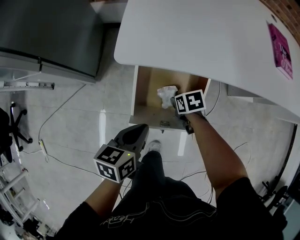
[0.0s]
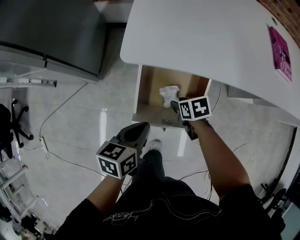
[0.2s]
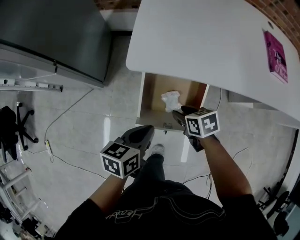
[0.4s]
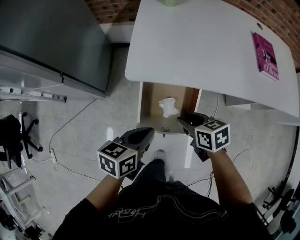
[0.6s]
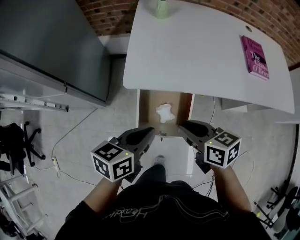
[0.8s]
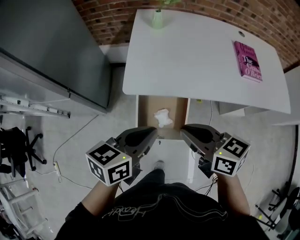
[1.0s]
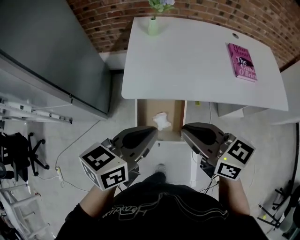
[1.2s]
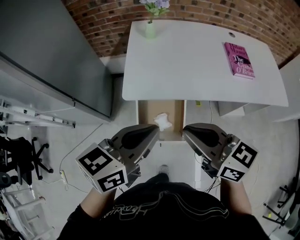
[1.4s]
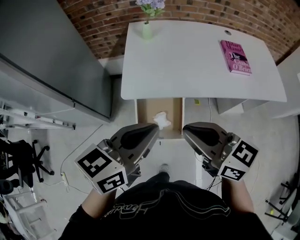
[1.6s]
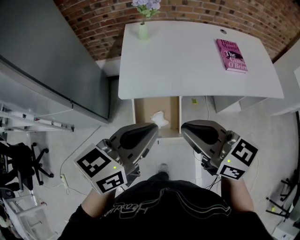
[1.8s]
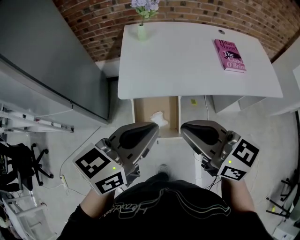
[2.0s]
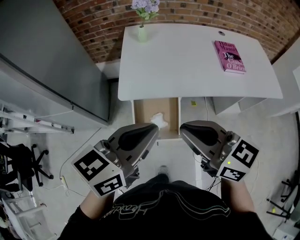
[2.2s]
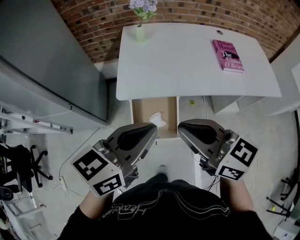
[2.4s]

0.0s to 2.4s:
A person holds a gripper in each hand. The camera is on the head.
0.0s to 1.2s: The grippers both shift upward by approximately 40 cm. The right gripper tilts its fingers about 50 degrees upward, while the left gripper swivels roughly 30 degrees.
1.2s to 2.4s: The grippers both shift upward by about 5 cm.

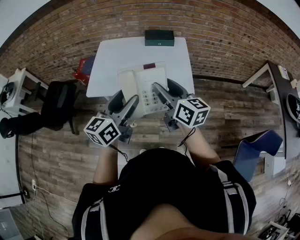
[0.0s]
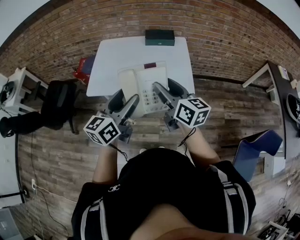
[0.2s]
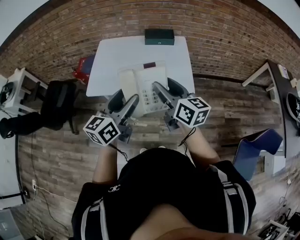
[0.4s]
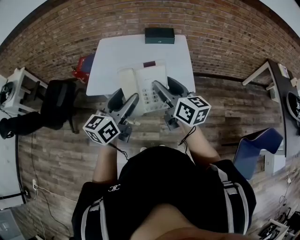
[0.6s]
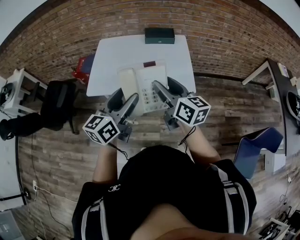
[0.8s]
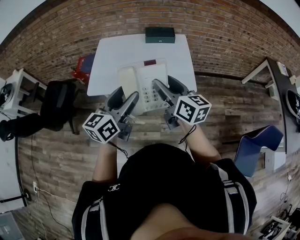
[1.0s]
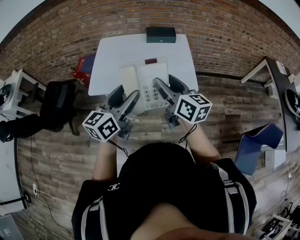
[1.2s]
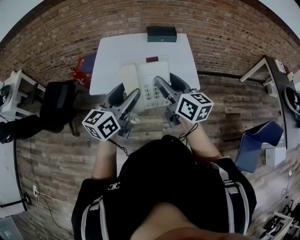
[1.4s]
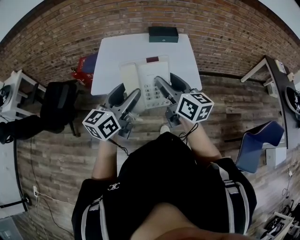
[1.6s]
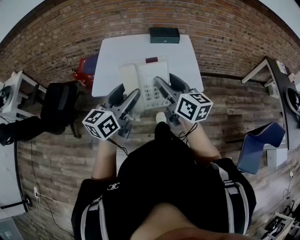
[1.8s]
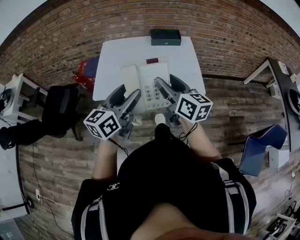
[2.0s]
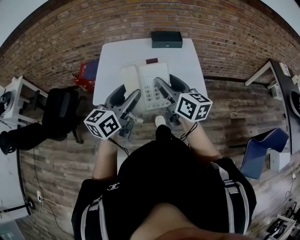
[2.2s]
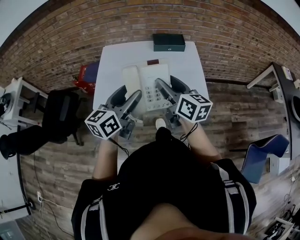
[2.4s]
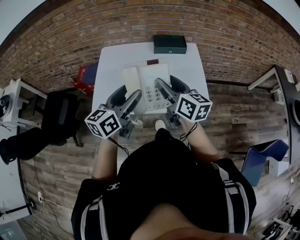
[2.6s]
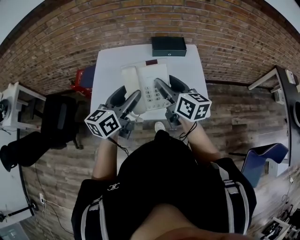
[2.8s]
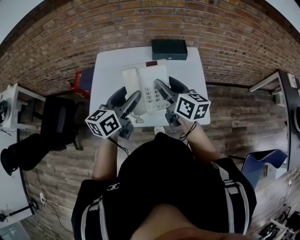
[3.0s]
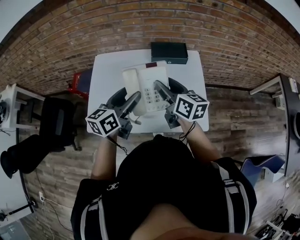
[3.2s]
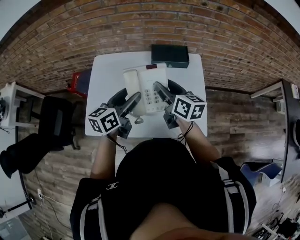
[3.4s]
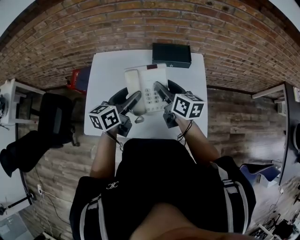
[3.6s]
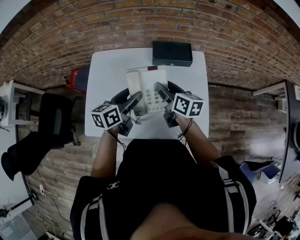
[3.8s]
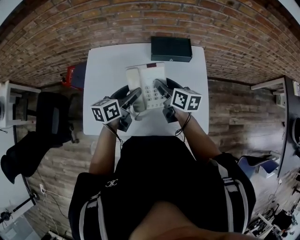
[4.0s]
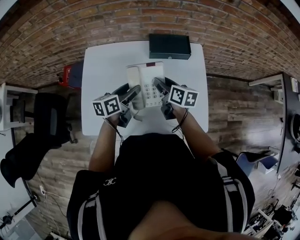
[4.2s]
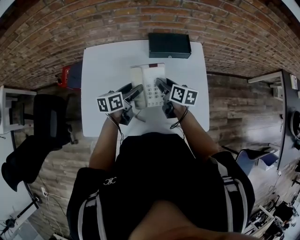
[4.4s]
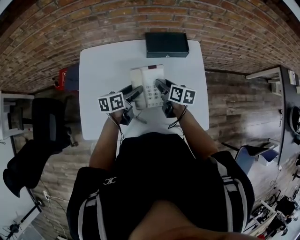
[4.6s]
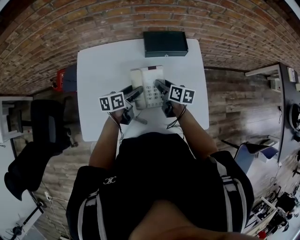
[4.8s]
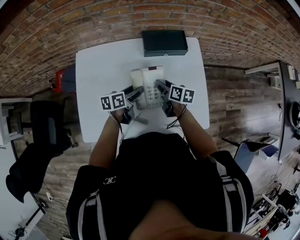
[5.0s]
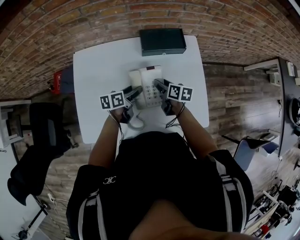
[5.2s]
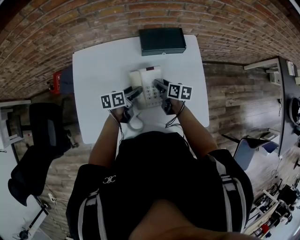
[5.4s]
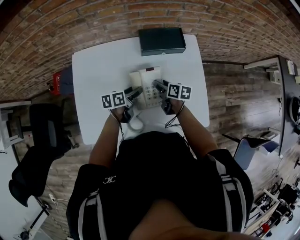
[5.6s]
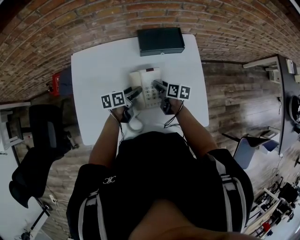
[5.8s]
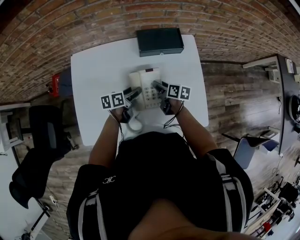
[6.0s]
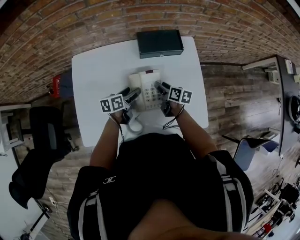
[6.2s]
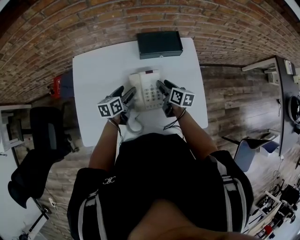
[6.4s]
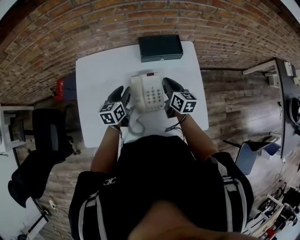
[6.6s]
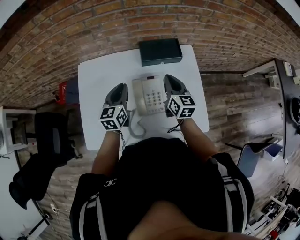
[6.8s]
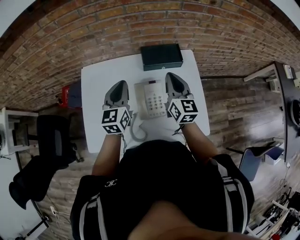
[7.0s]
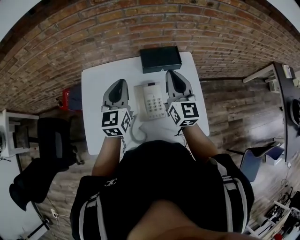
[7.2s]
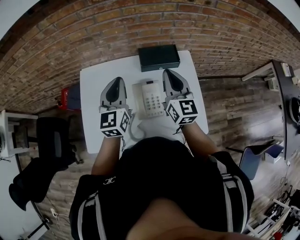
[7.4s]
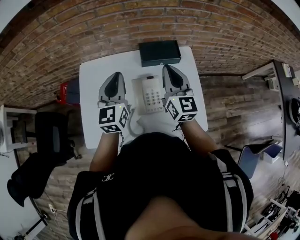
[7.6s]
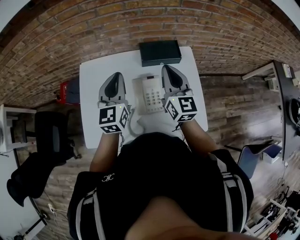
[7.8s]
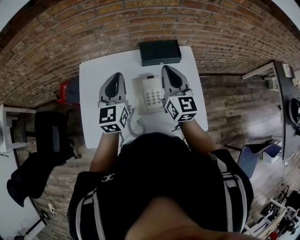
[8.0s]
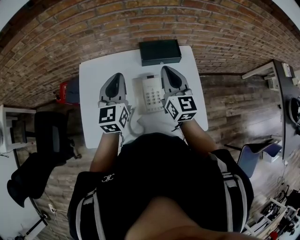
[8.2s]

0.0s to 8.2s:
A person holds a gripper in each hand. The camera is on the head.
0.0s to 1.6s: The grippers both shift to the left by about 5 cm.
1.6s to 3.2s: The grippers both shift forward by approximately 35 cm.
3.2s to 5.0s: Both grippers travel together downward and forward, roughly 25 cm. The right gripper rotates some 30 degrees. The left gripper swivels roughly 30 degrees.
5.0s to 6.6s: The left gripper ends up about 5 cm from where it was, swivels some 30 degrees, and closes up. Meanwhile the right gripper is displaced upward by about 5 cm, rotates about 20 degrees, and closes its fingers.
6.6s to 8.2s: Both grippers move upward, roughly 20 cm. The right gripper rotates approximately 30 degrees. The left gripper swivels some 30 degrees, and closes its fingers.

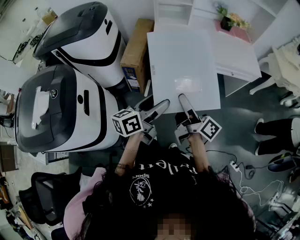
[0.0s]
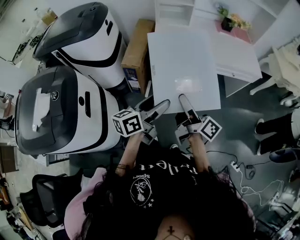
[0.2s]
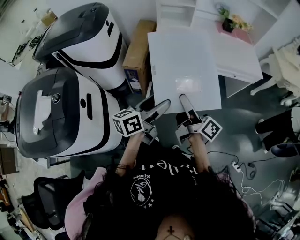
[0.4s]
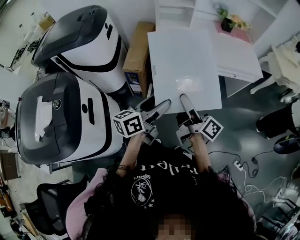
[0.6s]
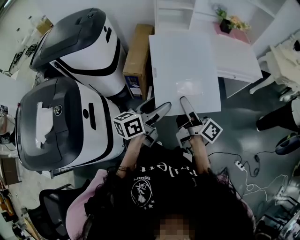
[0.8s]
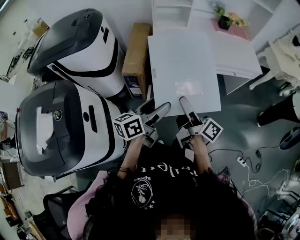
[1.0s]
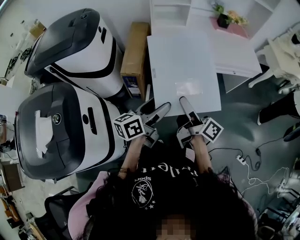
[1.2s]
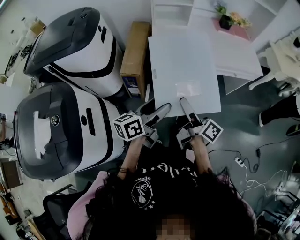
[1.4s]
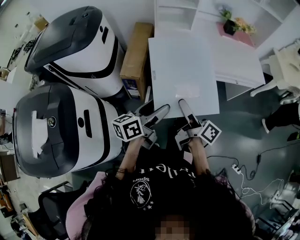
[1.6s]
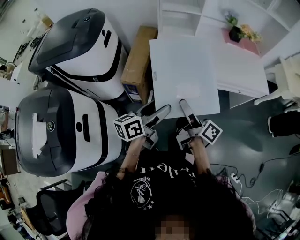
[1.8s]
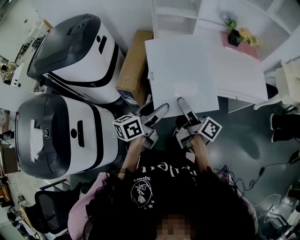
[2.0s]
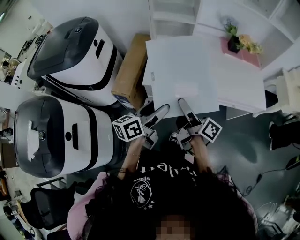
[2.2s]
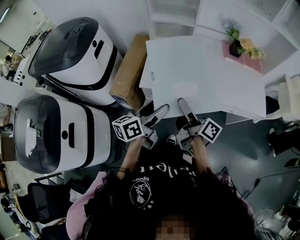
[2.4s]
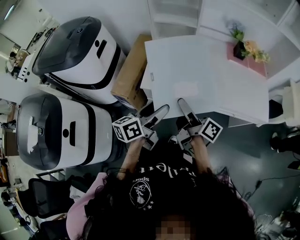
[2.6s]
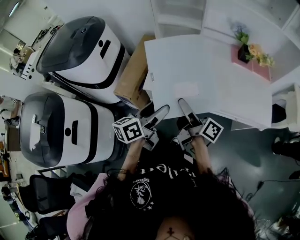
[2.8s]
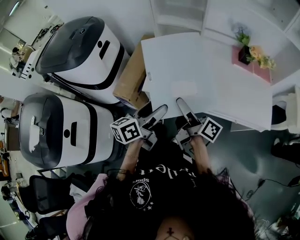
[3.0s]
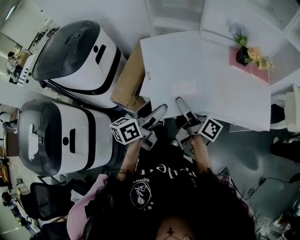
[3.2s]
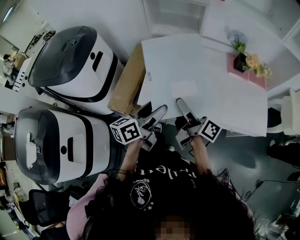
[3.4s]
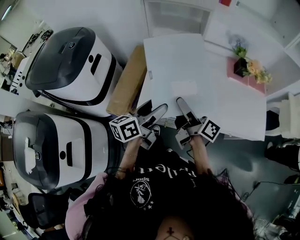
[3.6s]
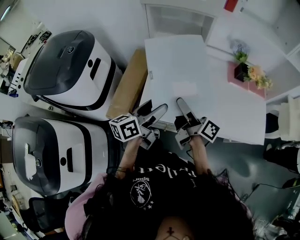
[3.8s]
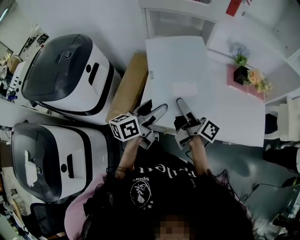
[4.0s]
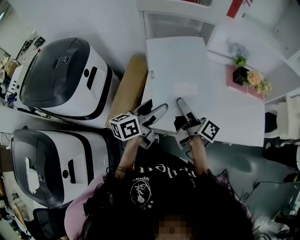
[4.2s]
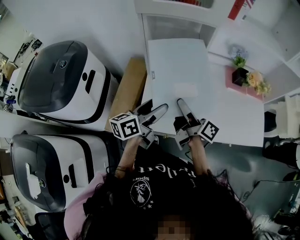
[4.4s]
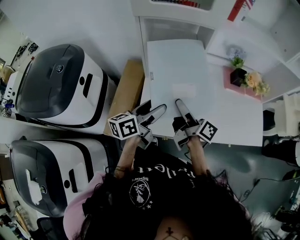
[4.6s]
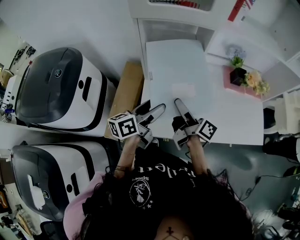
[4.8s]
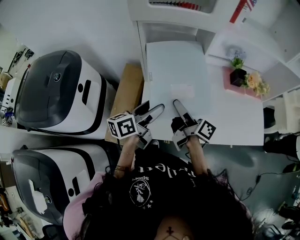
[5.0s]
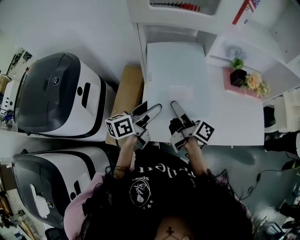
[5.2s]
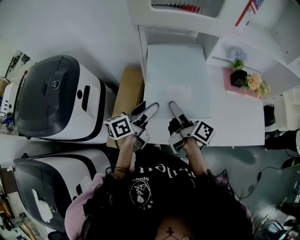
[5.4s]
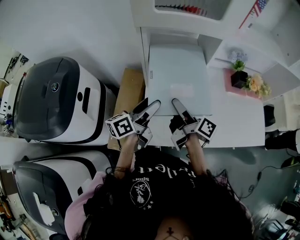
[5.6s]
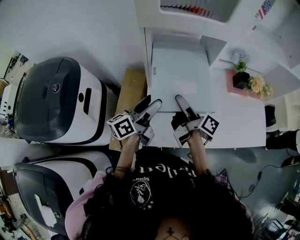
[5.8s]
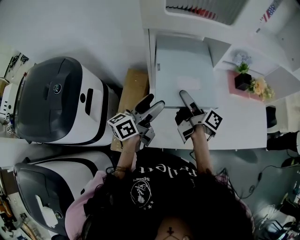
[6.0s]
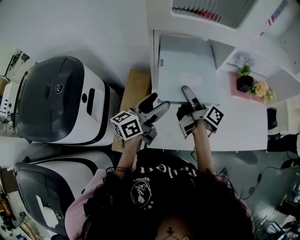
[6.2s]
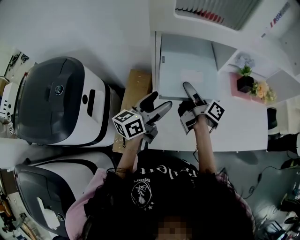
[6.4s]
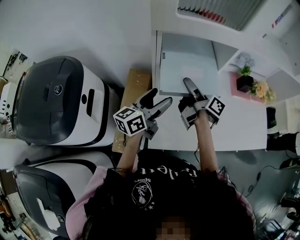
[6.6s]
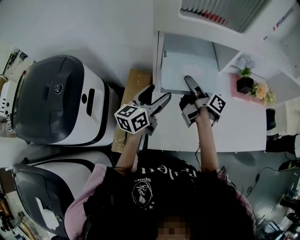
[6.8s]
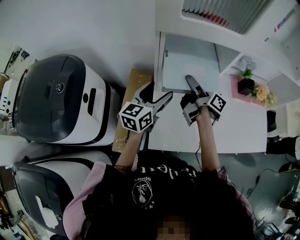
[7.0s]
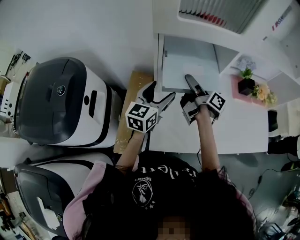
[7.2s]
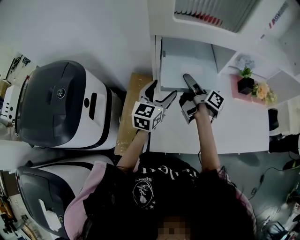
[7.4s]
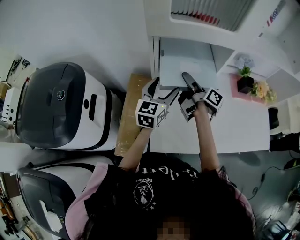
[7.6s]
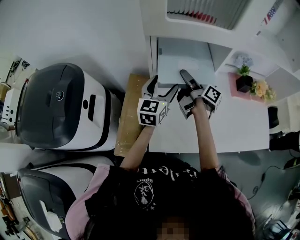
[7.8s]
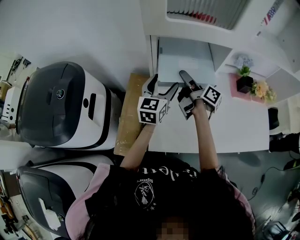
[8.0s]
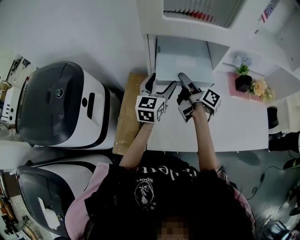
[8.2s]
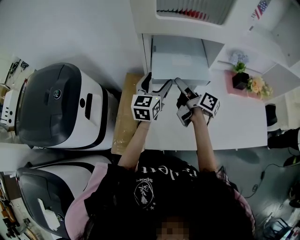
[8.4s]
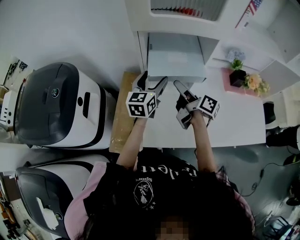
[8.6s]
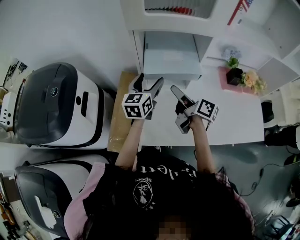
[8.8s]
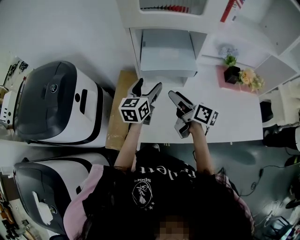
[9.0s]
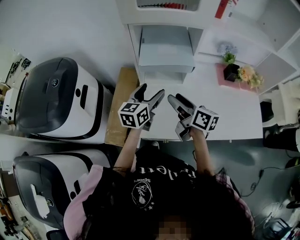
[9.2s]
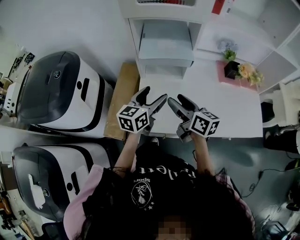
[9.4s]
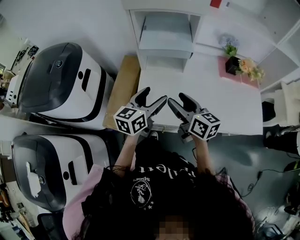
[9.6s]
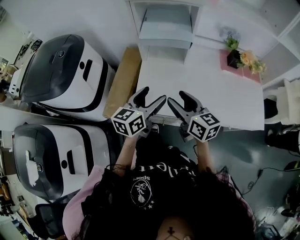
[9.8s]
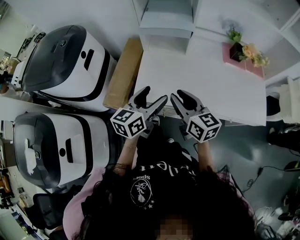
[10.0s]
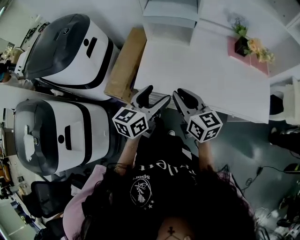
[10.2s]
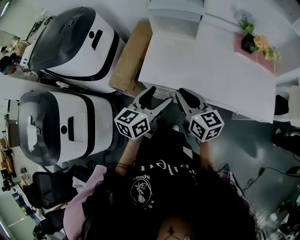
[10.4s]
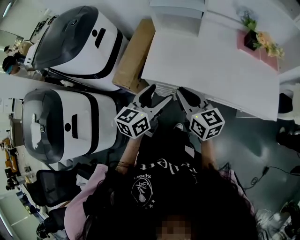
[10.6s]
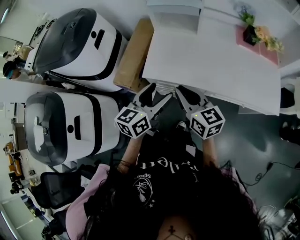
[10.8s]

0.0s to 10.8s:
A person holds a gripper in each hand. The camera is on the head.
0.0s to 1.6s: Both grippers travel together forward and to the left, roughly 10 cm.
1.6s to 3.0s: The grippers both shift forward and to the right by about 25 cm.
3.0s to 4.6s: The two grippers go about 25 cm forward.
4.6s to 6.2s: The two grippers go about 15 cm forward and to the left.
6.2s to 7.8s: Both grippers move forward, about 10 cm. The left gripper swivels some 40 degrees.
7.8s to 9.2s: The right gripper heads backward, covering some 20 cm, and swivels about 40 degrees. Meanwhile the left gripper shifts about 10 cm backward.
9.2s to 10.8s: Both grippers travel together backward, about 30 cm. The right gripper rotates roughly 30 degrees, and closes.

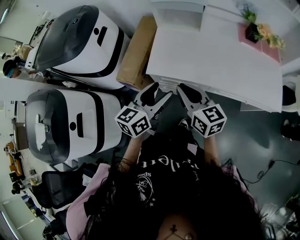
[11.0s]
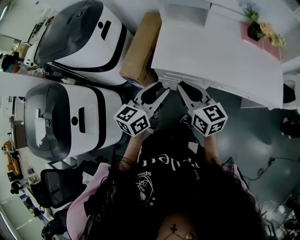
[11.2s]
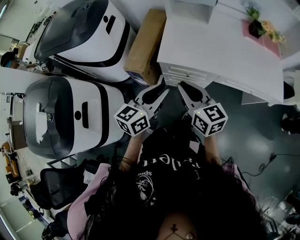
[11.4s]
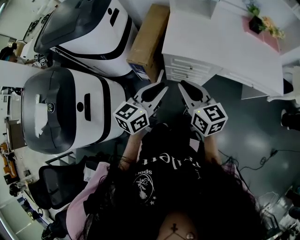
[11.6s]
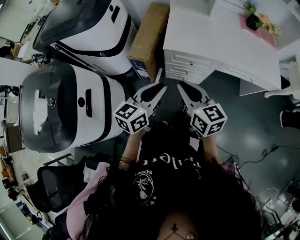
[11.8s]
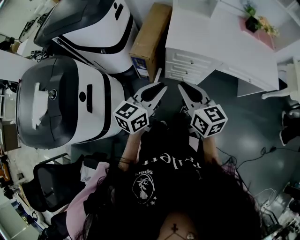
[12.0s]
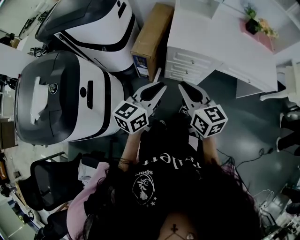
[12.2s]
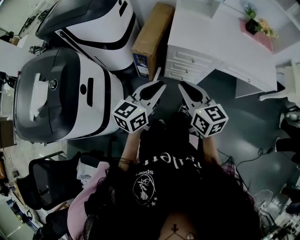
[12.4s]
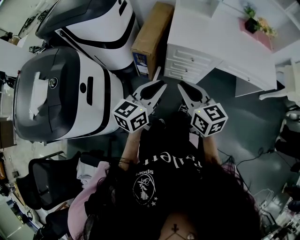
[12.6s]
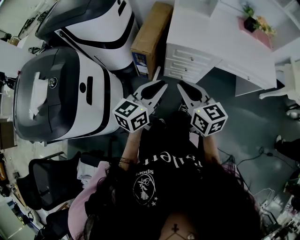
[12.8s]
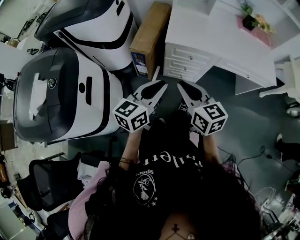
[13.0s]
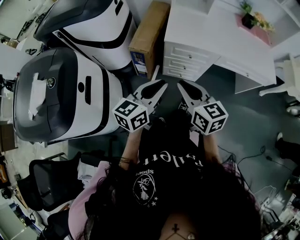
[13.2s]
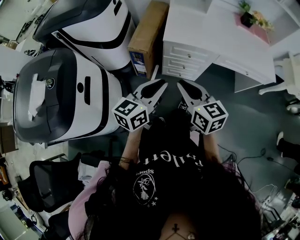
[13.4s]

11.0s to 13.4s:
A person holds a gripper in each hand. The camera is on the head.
11.0s to 12.2s: Both grippers move backward and to the left, approximately 25 cm. The left gripper closes up.
12.2s to 13.4s: The grippers move only a little.
